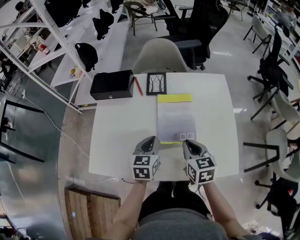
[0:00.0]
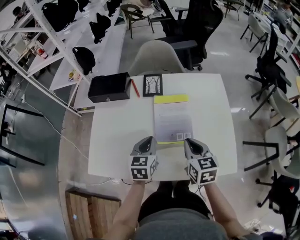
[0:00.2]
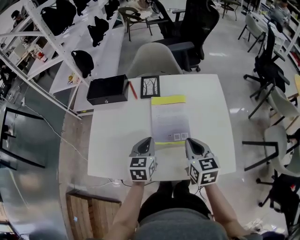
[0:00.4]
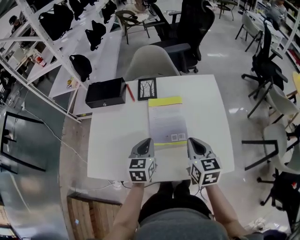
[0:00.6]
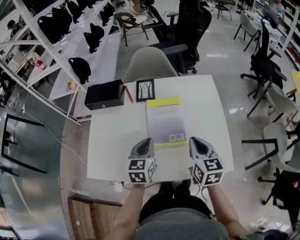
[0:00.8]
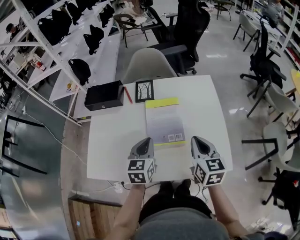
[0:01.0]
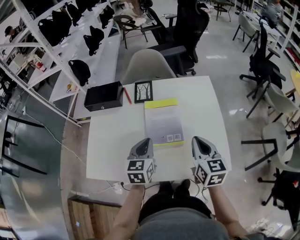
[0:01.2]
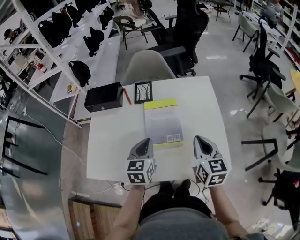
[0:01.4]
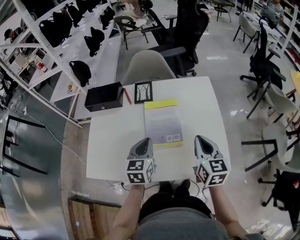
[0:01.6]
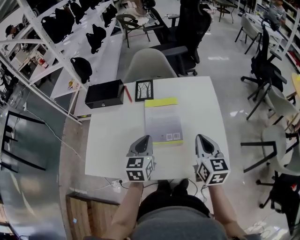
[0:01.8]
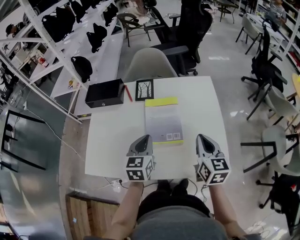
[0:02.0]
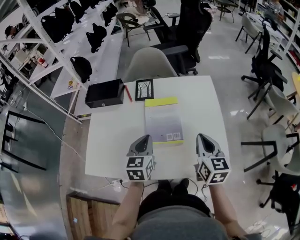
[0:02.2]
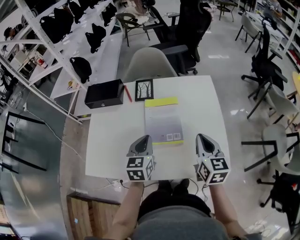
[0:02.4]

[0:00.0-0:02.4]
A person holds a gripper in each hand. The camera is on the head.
0:00.0 to 0:01.2: The right gripper goes roughly 10 cm to the right and upward, while the left gripper is displaced upward by about 5 cm.
0:01.2 to 0:02.4: The grippers make only small movements.

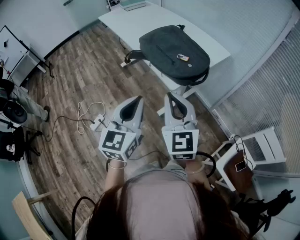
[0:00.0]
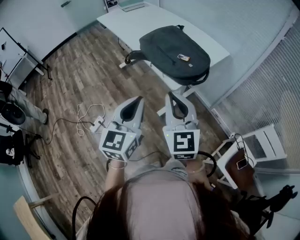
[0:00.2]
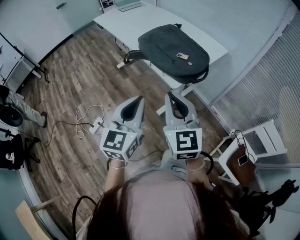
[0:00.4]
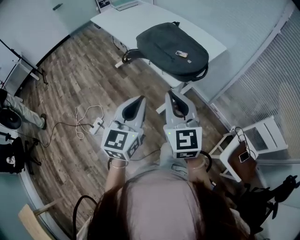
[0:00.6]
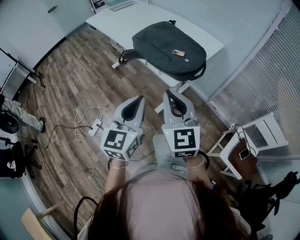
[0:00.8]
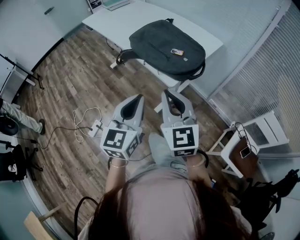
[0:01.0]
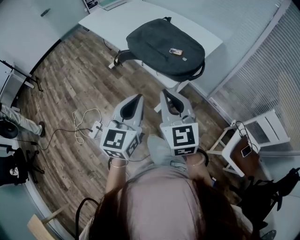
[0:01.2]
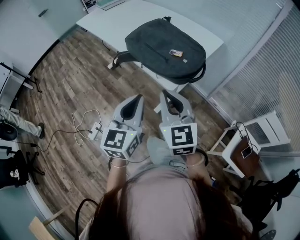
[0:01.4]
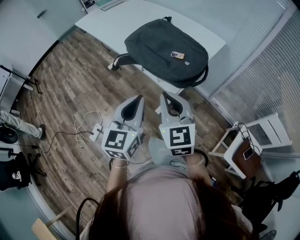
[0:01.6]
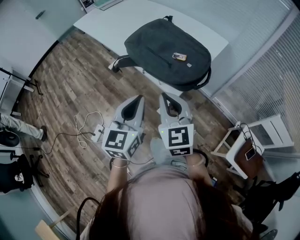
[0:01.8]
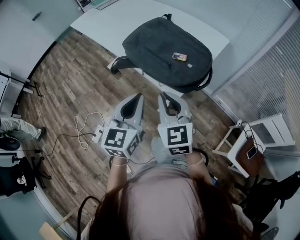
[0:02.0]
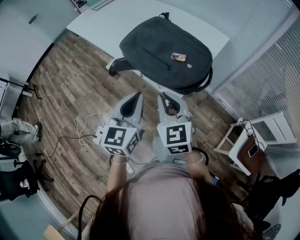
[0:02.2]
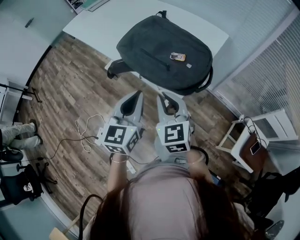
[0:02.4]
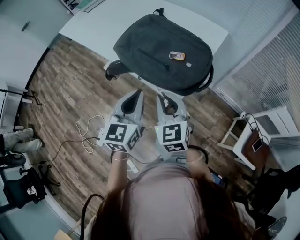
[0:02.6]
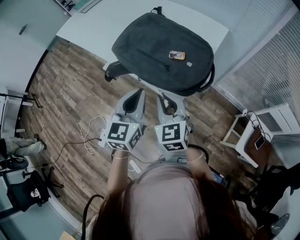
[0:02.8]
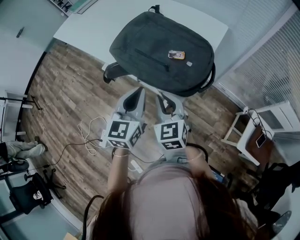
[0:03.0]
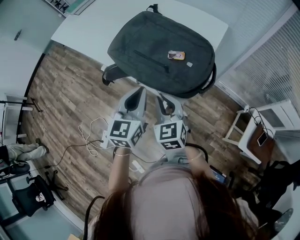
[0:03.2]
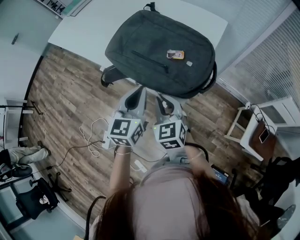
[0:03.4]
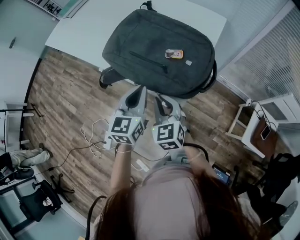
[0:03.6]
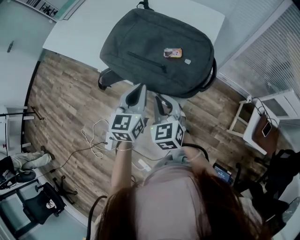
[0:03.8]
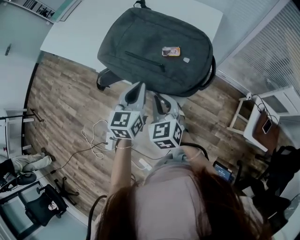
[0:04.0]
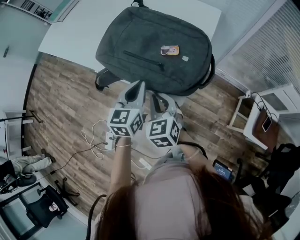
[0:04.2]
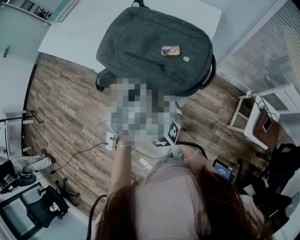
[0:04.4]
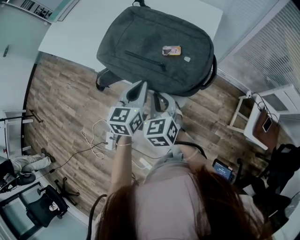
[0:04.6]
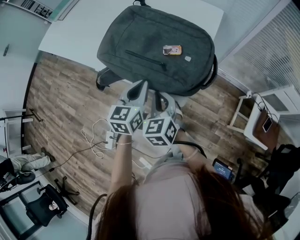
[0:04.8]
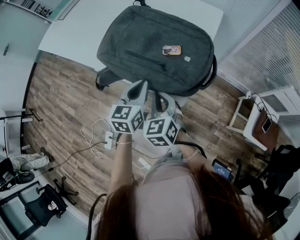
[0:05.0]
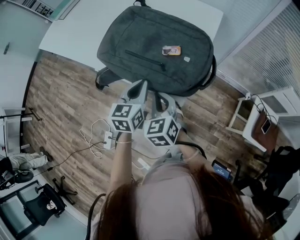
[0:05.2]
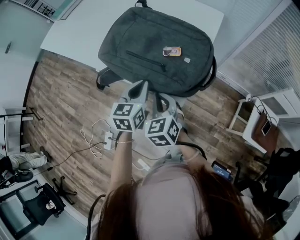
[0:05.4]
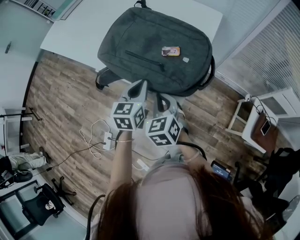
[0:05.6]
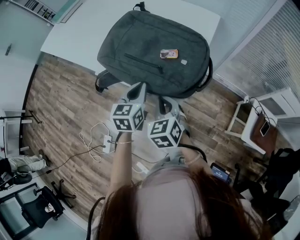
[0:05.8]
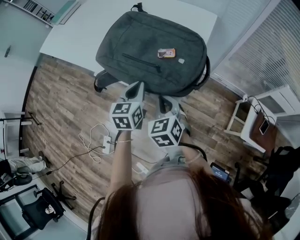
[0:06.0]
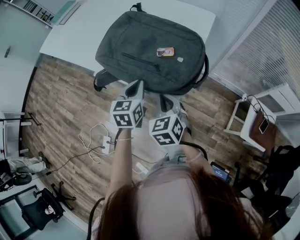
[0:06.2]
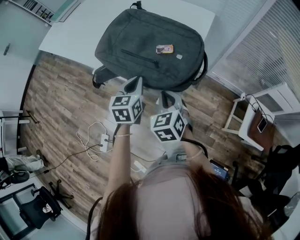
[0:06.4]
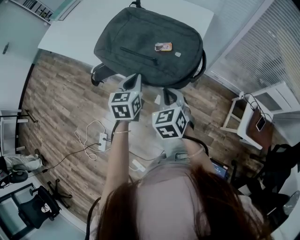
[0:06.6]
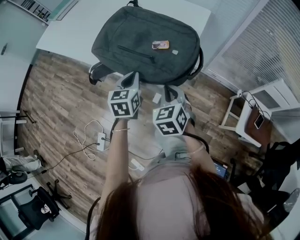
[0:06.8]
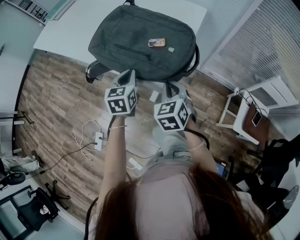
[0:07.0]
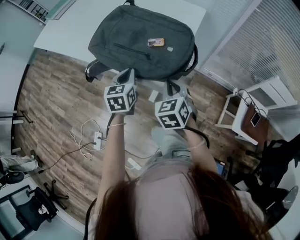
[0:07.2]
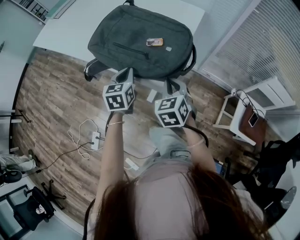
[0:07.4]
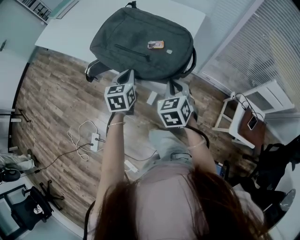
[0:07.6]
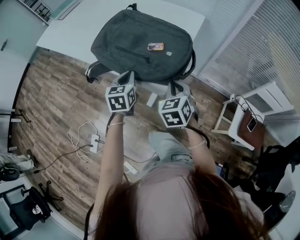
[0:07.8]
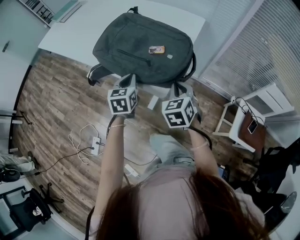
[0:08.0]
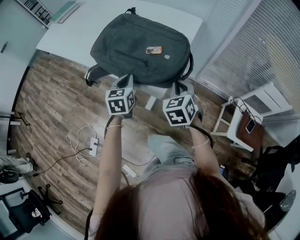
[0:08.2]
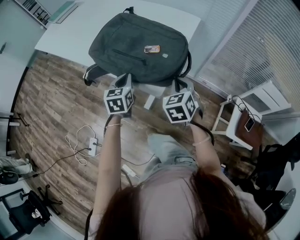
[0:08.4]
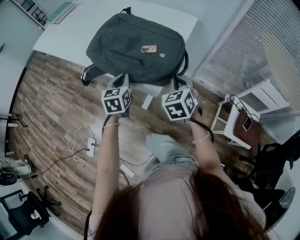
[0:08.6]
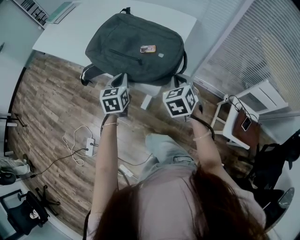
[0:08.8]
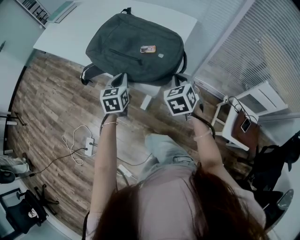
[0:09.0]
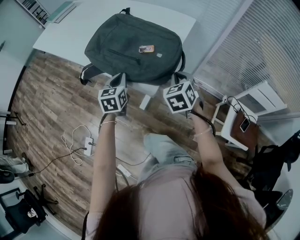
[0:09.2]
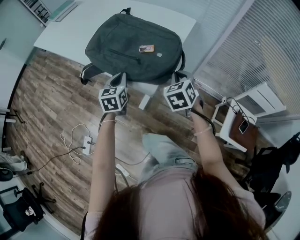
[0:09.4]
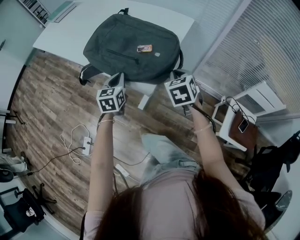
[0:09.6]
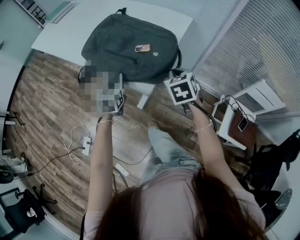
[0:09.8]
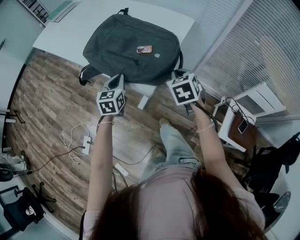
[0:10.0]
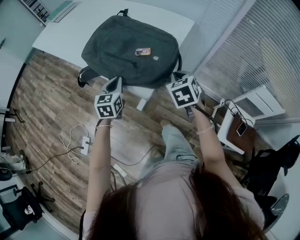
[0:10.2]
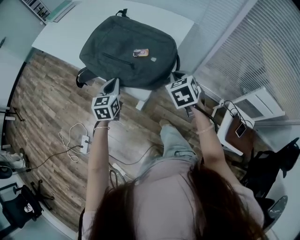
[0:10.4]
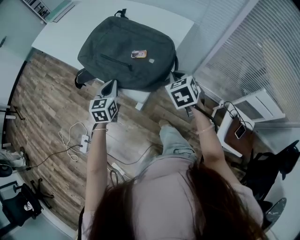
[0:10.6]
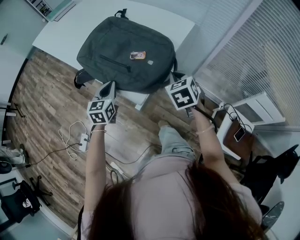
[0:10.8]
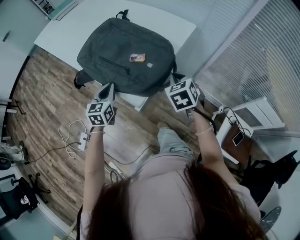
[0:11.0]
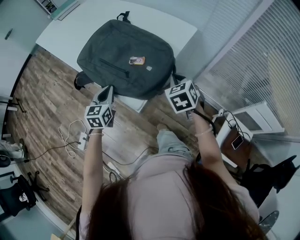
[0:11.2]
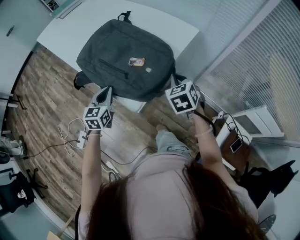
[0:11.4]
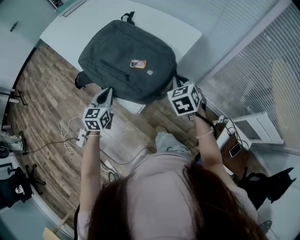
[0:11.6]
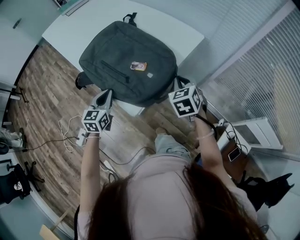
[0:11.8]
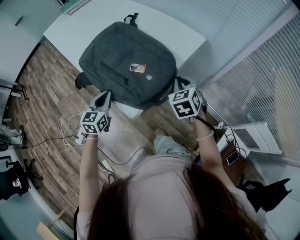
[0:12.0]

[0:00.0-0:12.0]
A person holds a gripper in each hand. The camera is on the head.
0:00.0 to 0:01.6: The grippers both shift forward and downward by approximately 10 cm.
0:01.6 to 0:03.0: The two grippers go roughly 15 cm forward and downward.
0:03.0 to 0:04.4: The left gripper is displaced downward and forward by some 10 cm. The right gripper moves downward, roughly 5 cm.
0:04.4 to 0:06.0: The grippers make only small movements.
0:06.0 to 0:07.6: The right gripper goes some 10 cm to the right.
0:07.6 to 0:09.0: The right gripper is displaced to the right by approximately 5 cm.
0:09.0 to 0:10.4: There are only small adjustments of the grippers.
0:10.4 to 0:12.0: The right gripper moves forward, some 10 cm.

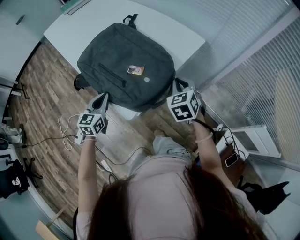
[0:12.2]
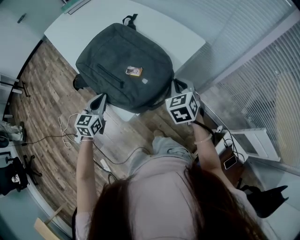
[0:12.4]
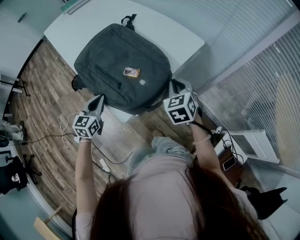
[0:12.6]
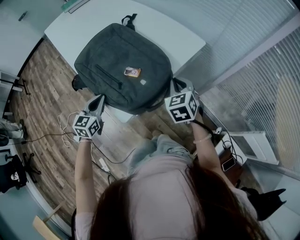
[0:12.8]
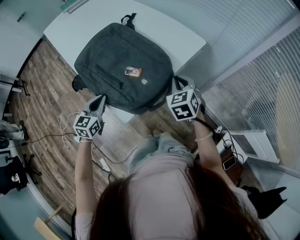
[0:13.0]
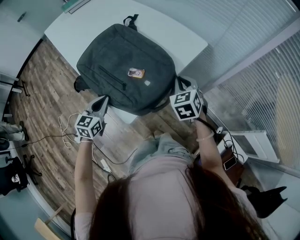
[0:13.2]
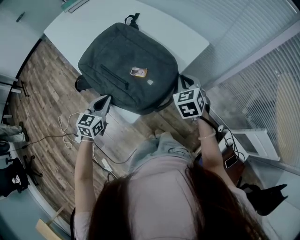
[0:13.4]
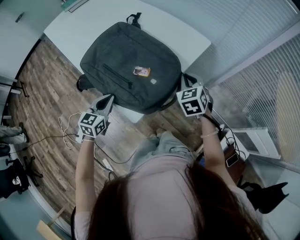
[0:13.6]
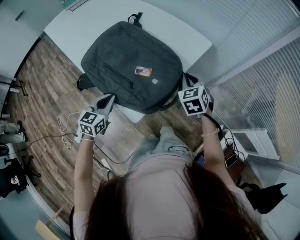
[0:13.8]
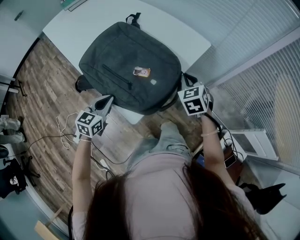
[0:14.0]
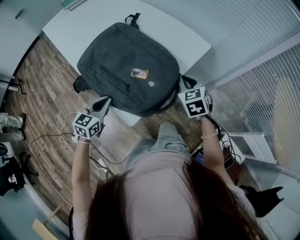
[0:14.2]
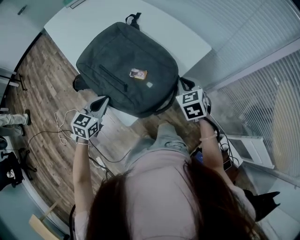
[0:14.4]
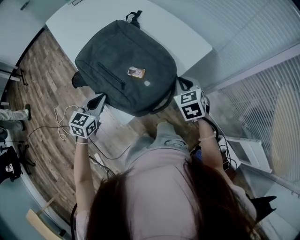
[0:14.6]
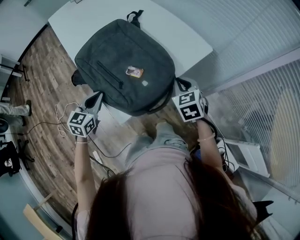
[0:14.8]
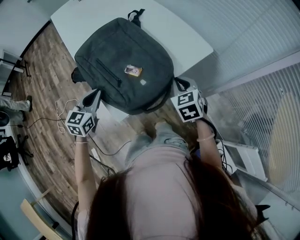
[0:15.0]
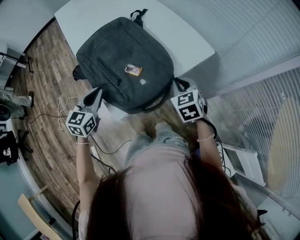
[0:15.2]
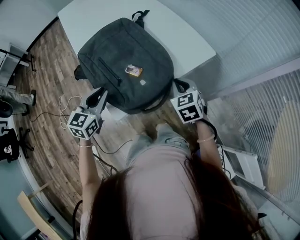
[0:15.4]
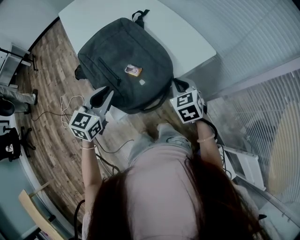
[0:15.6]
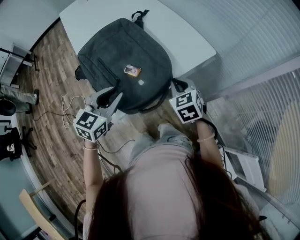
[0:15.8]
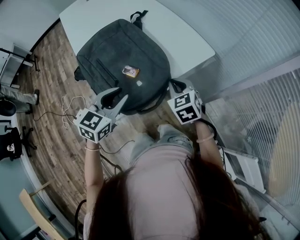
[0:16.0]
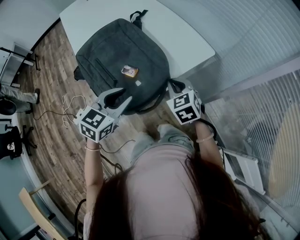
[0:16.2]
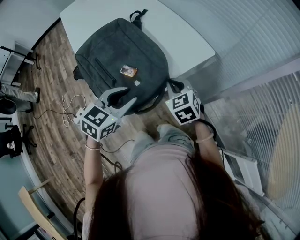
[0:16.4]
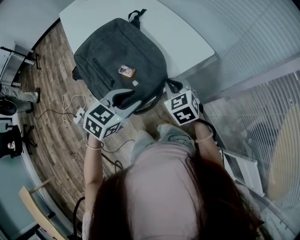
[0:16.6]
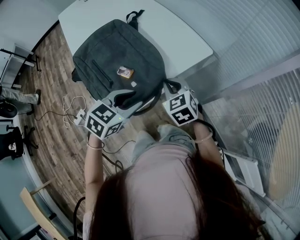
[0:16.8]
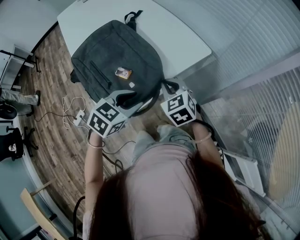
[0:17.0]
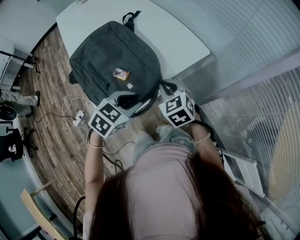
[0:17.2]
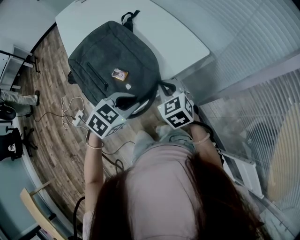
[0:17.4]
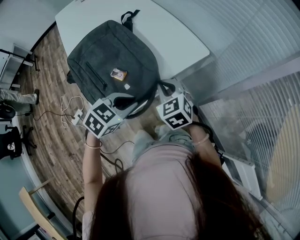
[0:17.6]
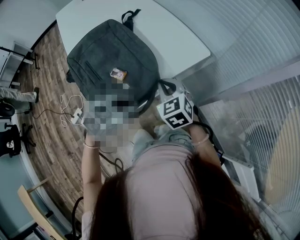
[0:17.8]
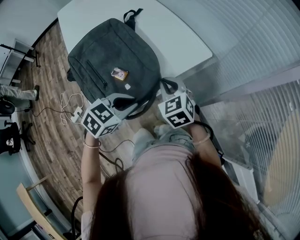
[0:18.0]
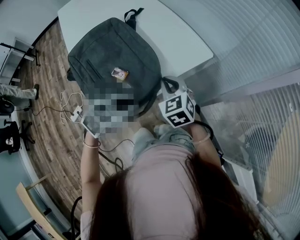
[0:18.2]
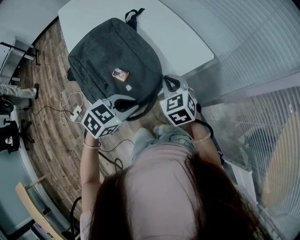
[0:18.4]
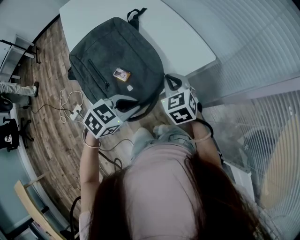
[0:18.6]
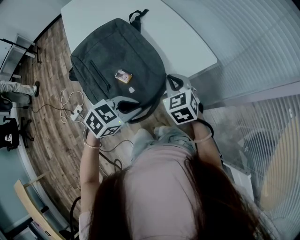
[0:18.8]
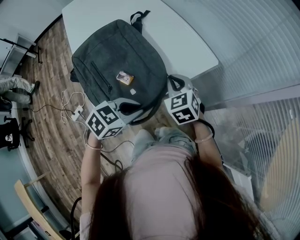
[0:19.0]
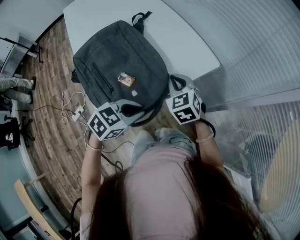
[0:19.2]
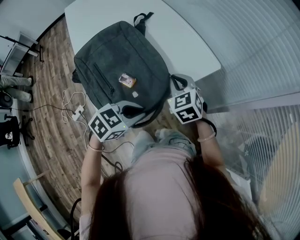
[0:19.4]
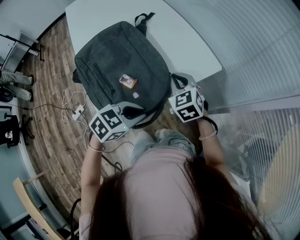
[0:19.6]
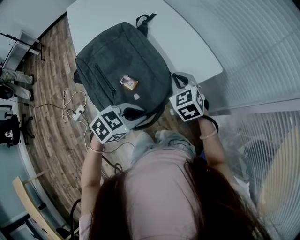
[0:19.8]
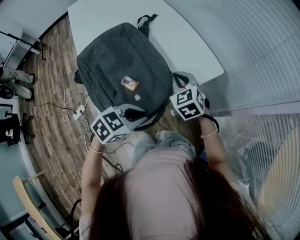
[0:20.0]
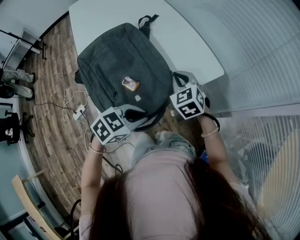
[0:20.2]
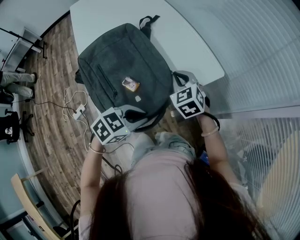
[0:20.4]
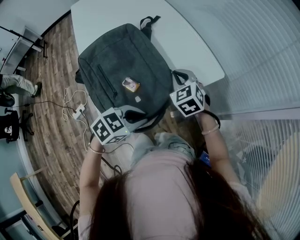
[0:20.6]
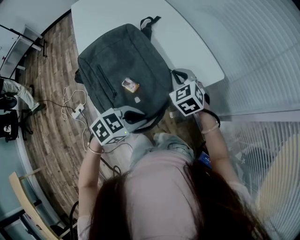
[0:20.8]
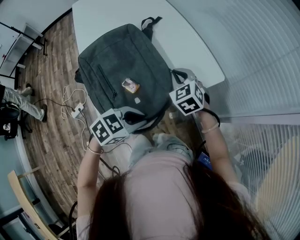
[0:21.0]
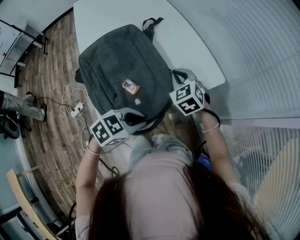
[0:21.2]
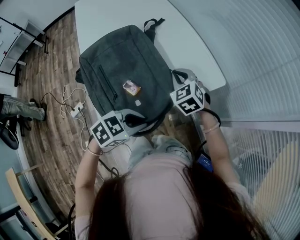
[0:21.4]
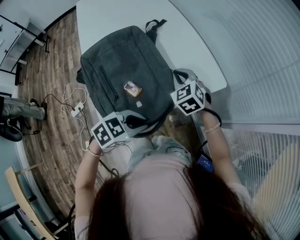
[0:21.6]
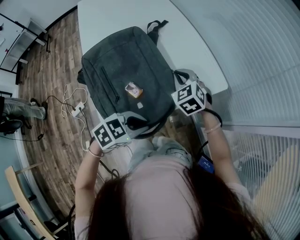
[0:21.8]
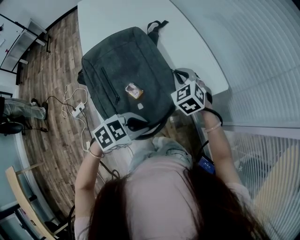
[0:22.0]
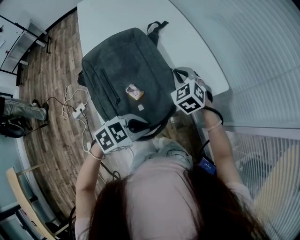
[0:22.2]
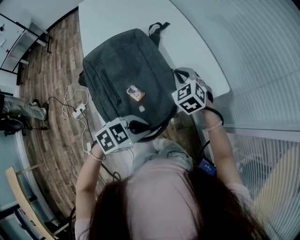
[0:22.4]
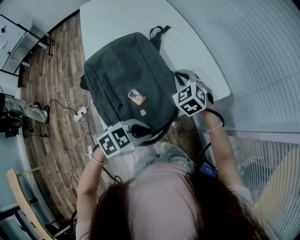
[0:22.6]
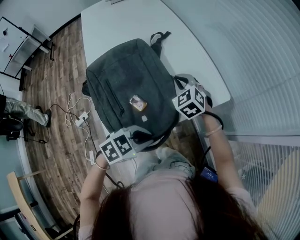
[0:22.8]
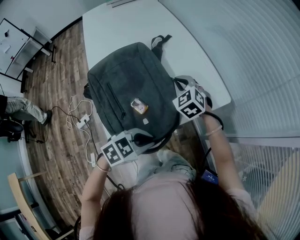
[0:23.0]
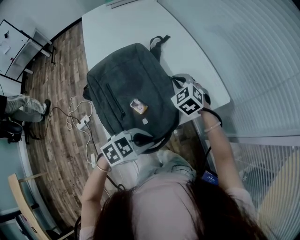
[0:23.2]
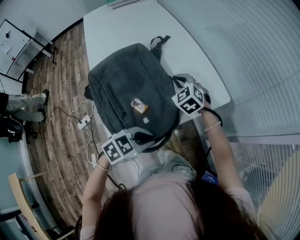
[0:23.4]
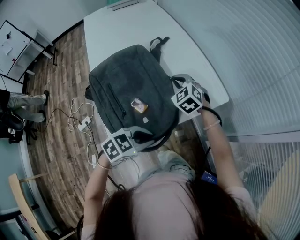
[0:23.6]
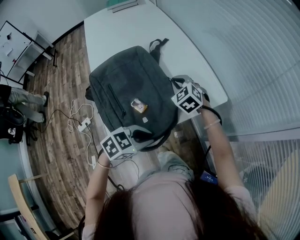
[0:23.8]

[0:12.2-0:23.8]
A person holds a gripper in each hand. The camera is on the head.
0:12.2 to 0:15.0: The grippers move only a little.
0:15.0 to 0:16.6: The left gripper shifts some 20 cm to the right, swivels about 20 degrees, and opens its fingers.
0:16.6 to 0:18.0: The left gripper closes its fingers.
0:18.0 to 0:19.4: The right gripper is displaced forward by some 5 cm.
0:19.4 to 0:21.0: The right gripper moves roughly 5 cm.
0:21.0 to 0:22.4: The grippers stay close to where they were, moving slightly.
0:22.4 to 0:23.8: There are only small adjustments of the grippers.
